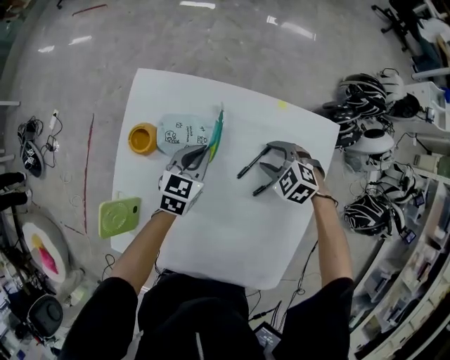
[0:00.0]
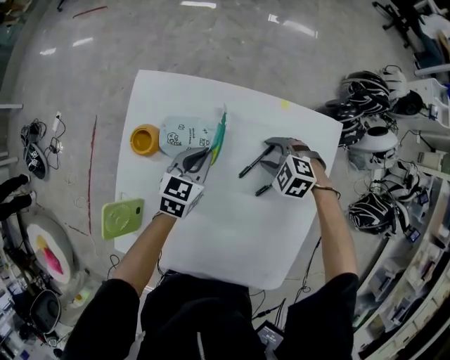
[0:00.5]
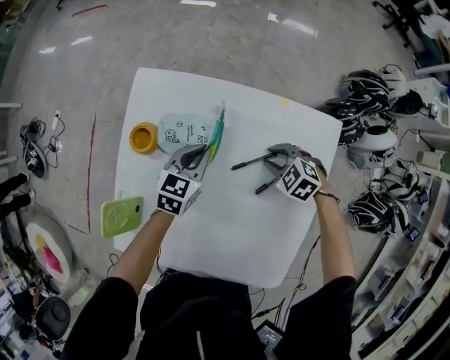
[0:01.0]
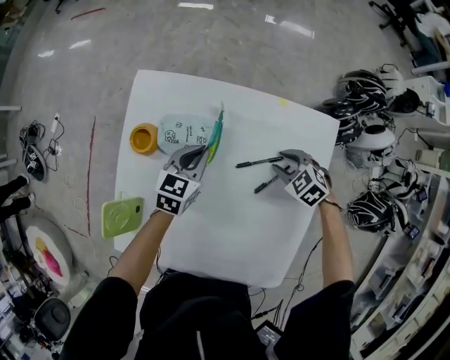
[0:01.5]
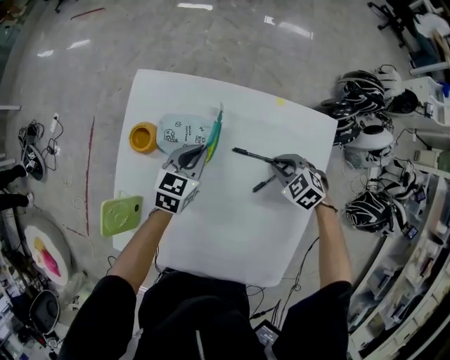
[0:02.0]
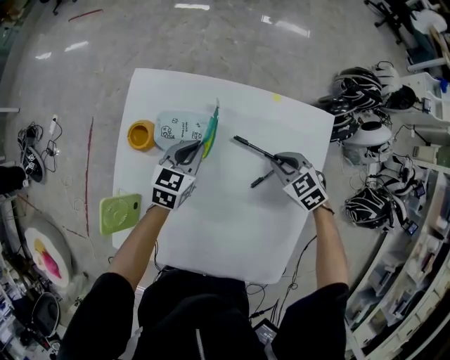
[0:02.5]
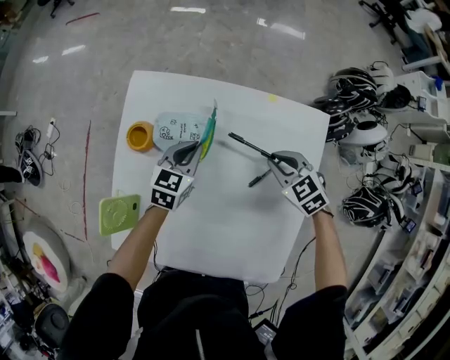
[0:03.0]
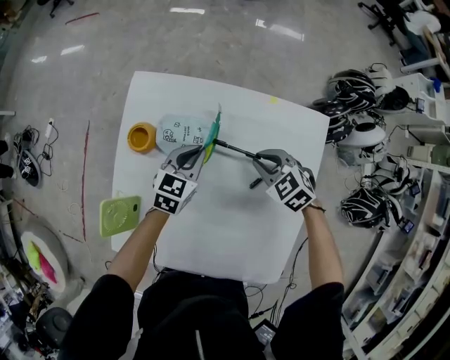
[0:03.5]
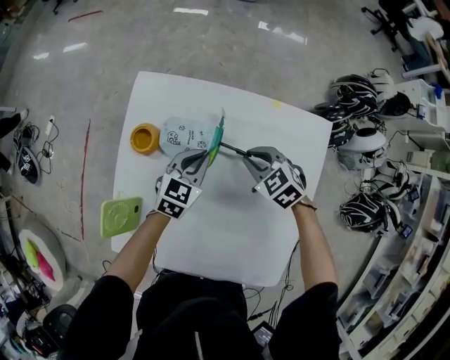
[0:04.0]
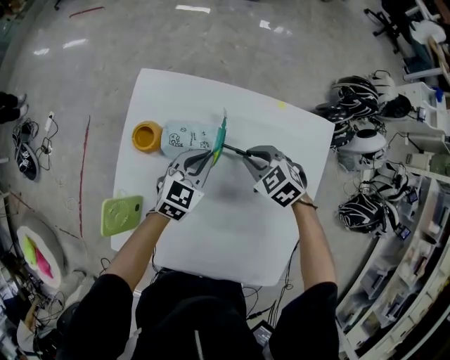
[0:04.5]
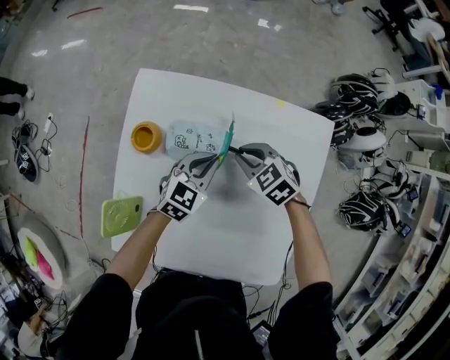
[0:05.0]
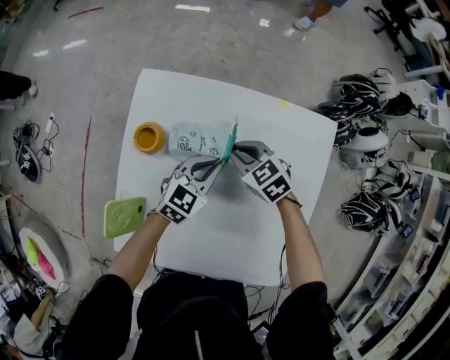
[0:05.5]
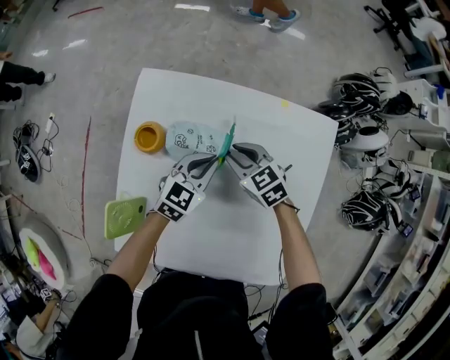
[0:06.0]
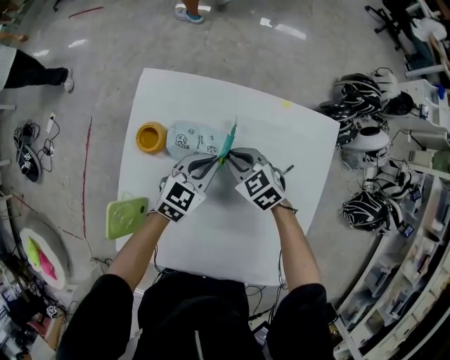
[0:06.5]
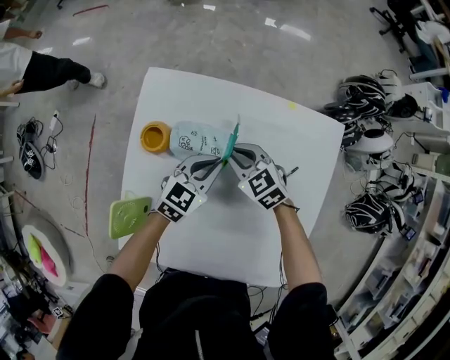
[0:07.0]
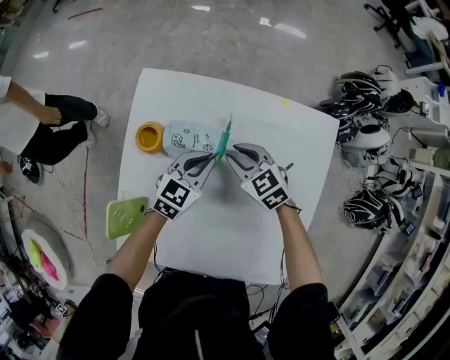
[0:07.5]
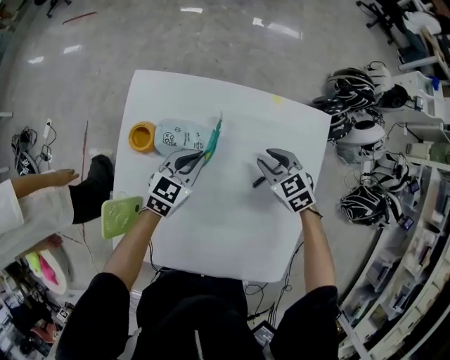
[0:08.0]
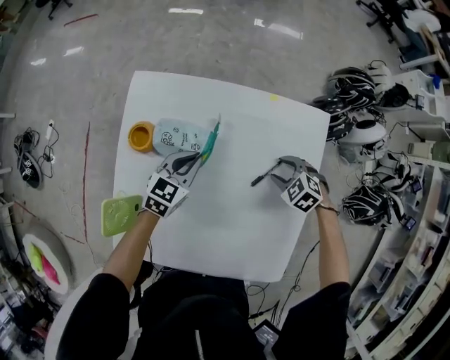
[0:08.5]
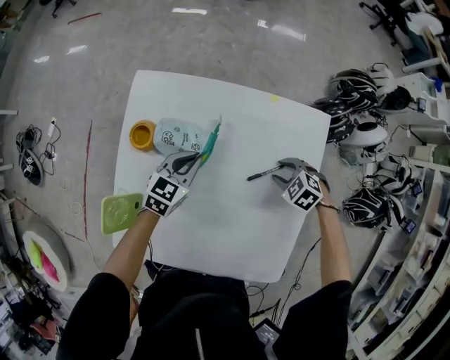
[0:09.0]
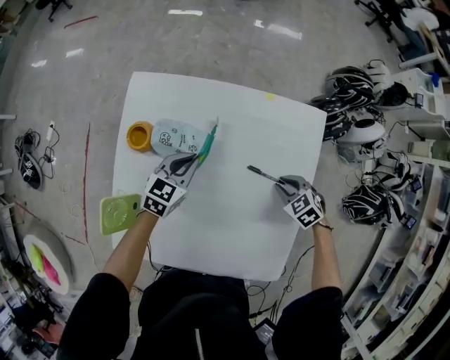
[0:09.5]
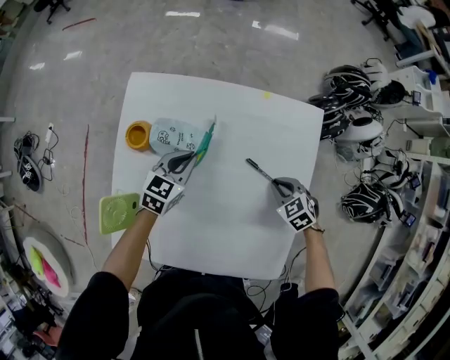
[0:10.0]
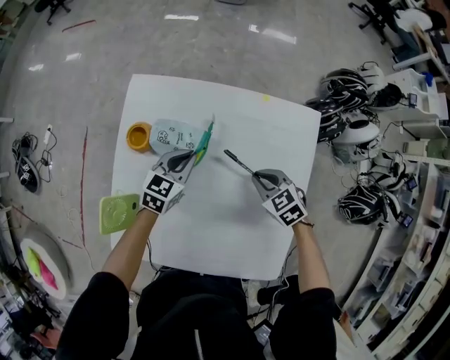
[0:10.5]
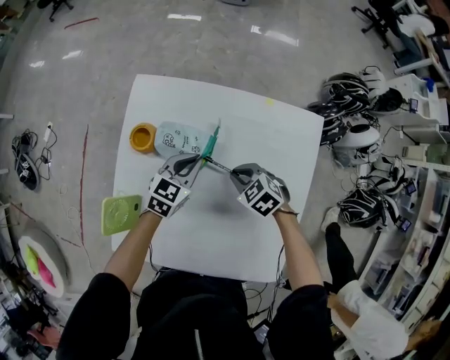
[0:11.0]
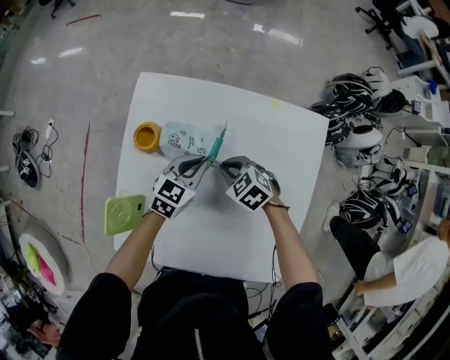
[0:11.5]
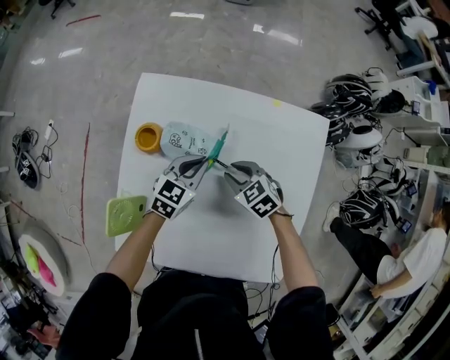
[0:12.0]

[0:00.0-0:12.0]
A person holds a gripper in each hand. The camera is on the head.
0:00.0 to 0:02.0: The right gripper ends up about 5 cm from where it was, and closes its fingers.
0:02.0 to 0:04.0: The right gripper is displaced to the left and upward by roughly 10 cm.
0:04.0 to 0:06.0: The right gripper heads to the left, covering about 5 cm.
0:06.0 to 0:08.0: The right gripper shifts some 10 cm to the right.
0:08.0 to 0:10.0: The right gripper moves backward and to the right, about 15 cm, and closes.
0:10.0 to 0:12.0: The right gripper goes some 20 cm to the left and forward.

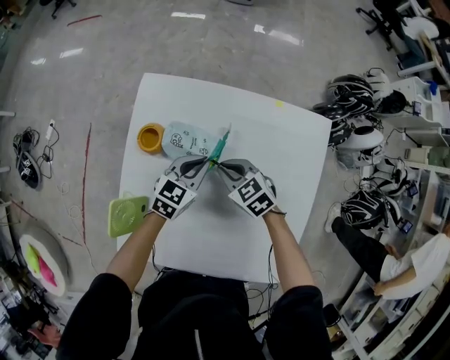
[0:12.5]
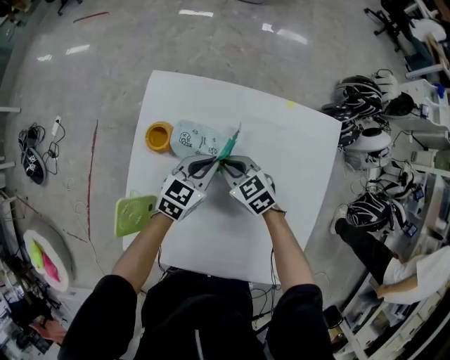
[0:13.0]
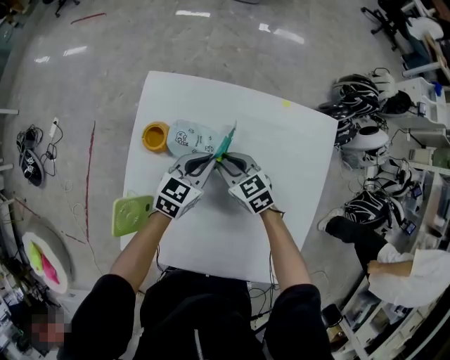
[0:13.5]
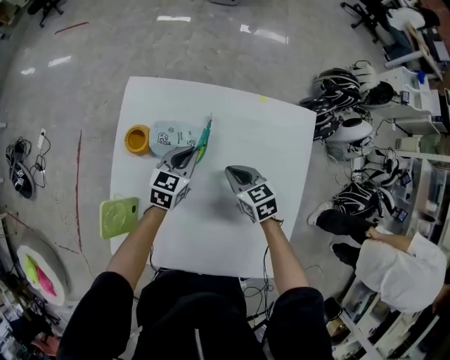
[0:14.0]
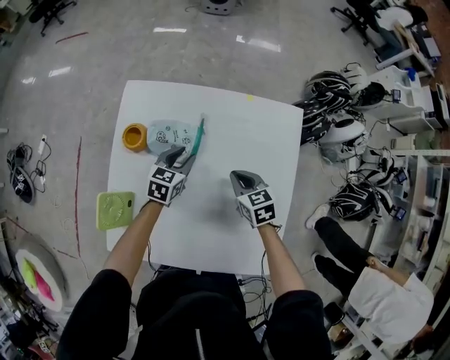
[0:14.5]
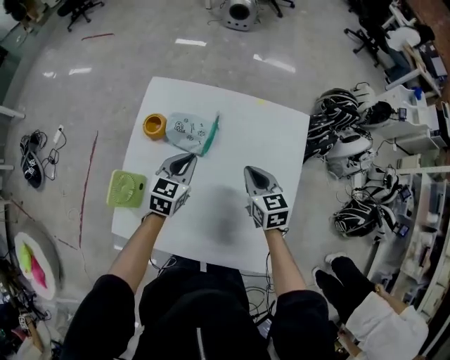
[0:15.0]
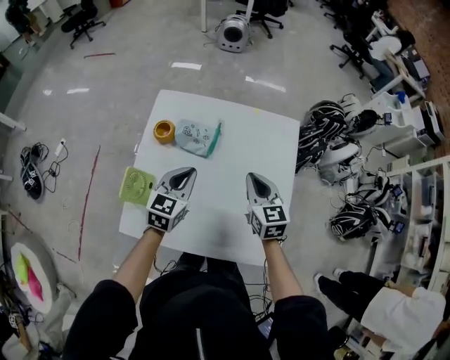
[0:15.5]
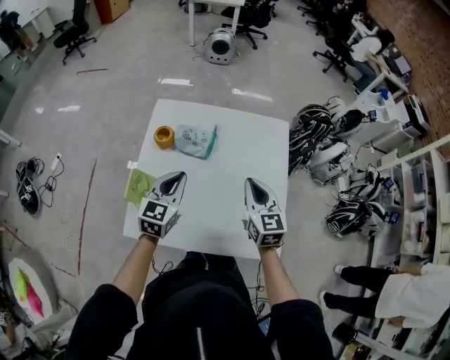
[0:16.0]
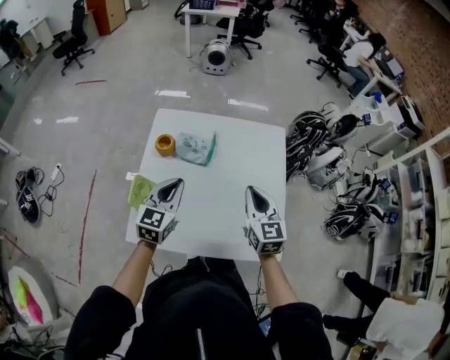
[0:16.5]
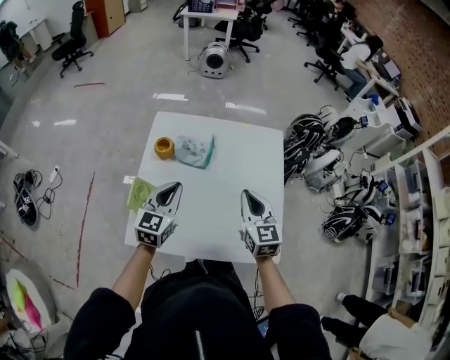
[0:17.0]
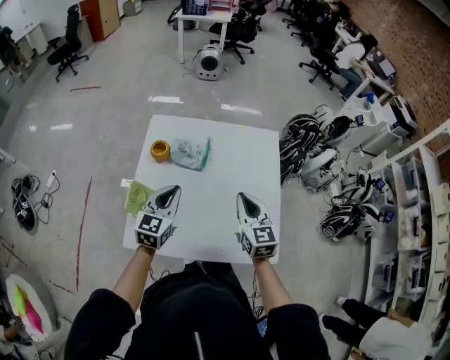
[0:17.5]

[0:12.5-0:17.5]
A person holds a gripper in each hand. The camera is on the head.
0:12.5 to 0:15.0: The left gripper shifts about 10 cm upward and backward, and opens, then closes once more, while the right gripper travels to the right, upward and backward by approximately 15 cm, and rotates approximately 30 degrees.
0:15.0 to 0:17.5: The two grippers go approximately 20 cm backward and upward. The right gripper changes its angle by roughly 20 degrees.

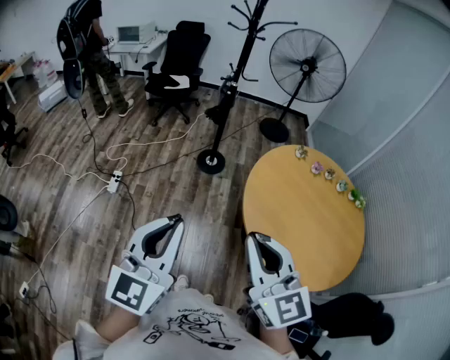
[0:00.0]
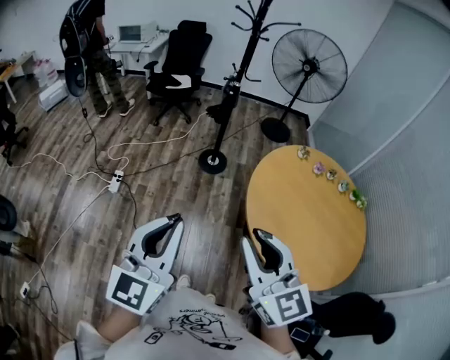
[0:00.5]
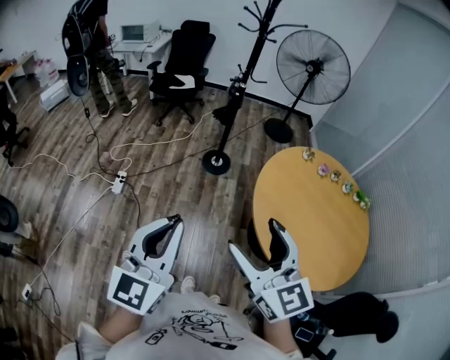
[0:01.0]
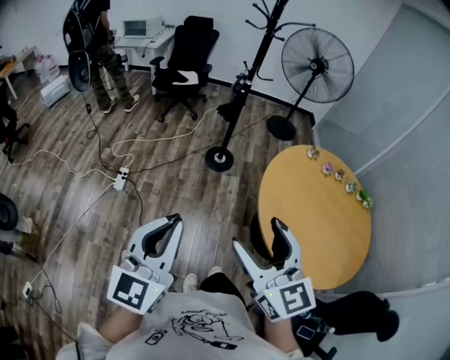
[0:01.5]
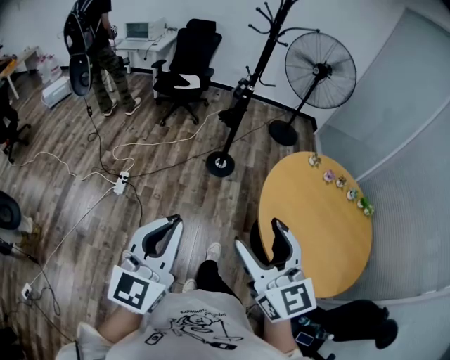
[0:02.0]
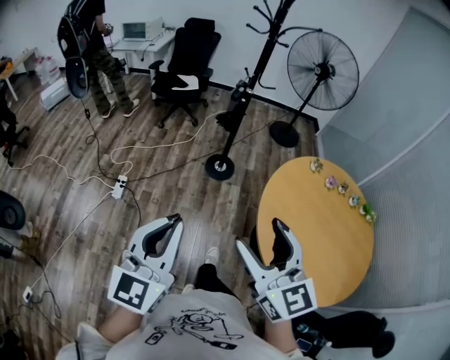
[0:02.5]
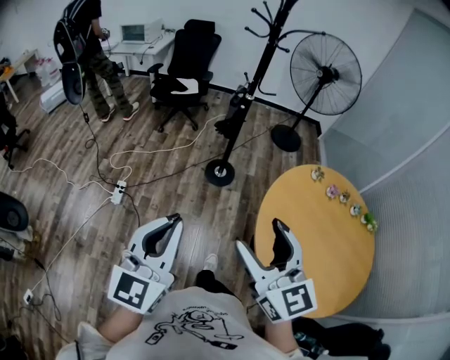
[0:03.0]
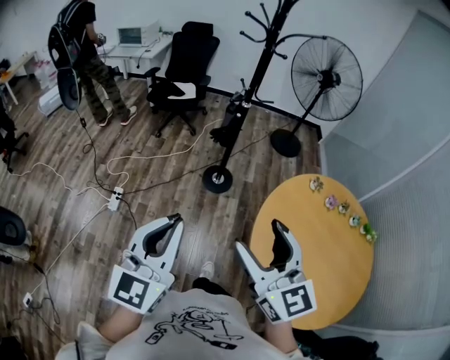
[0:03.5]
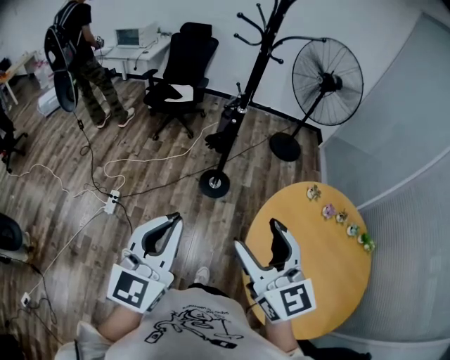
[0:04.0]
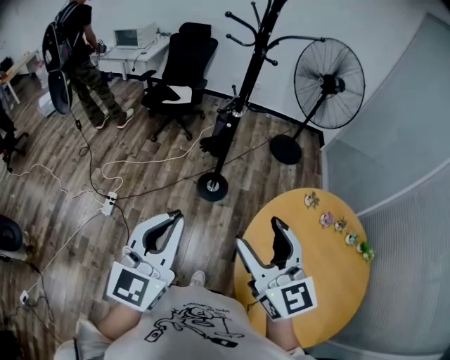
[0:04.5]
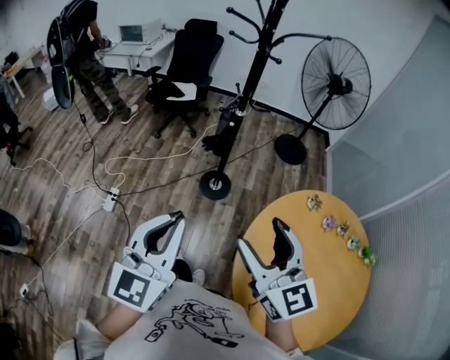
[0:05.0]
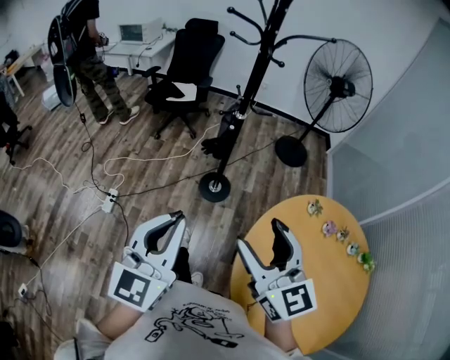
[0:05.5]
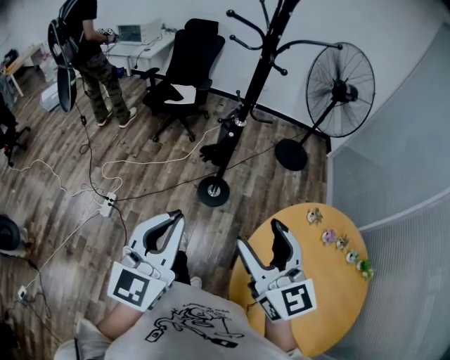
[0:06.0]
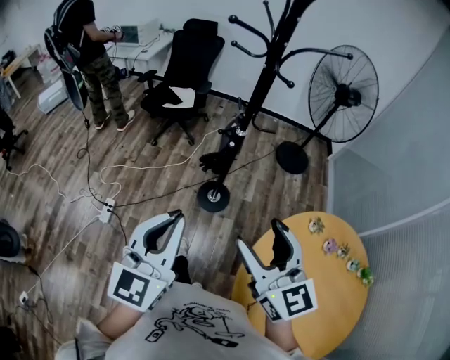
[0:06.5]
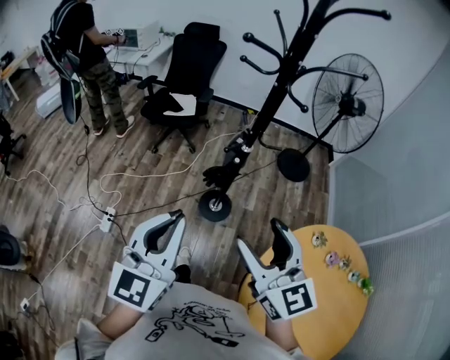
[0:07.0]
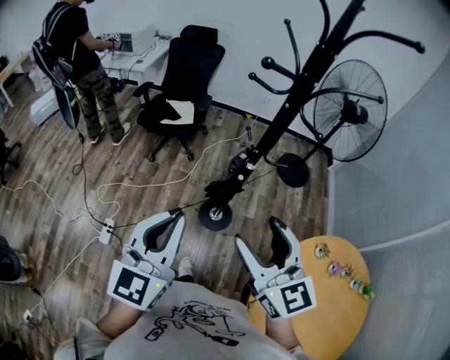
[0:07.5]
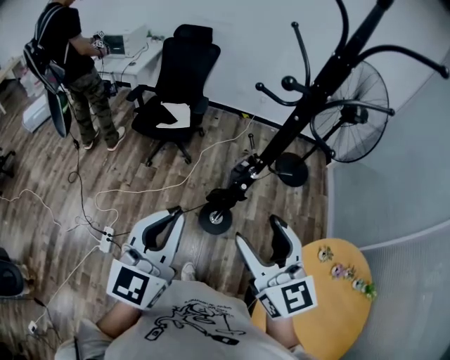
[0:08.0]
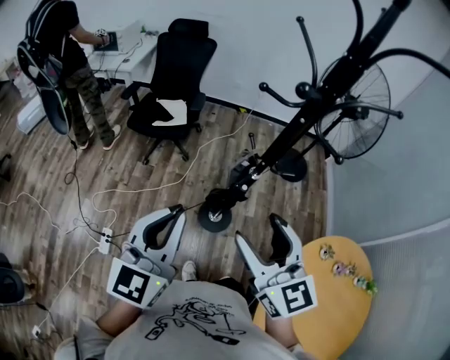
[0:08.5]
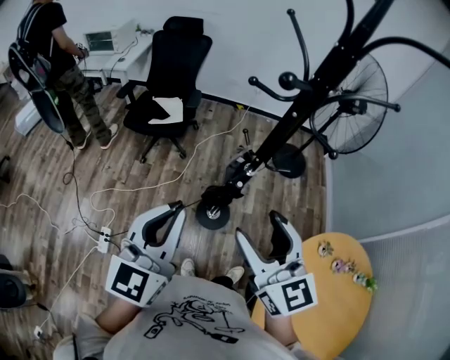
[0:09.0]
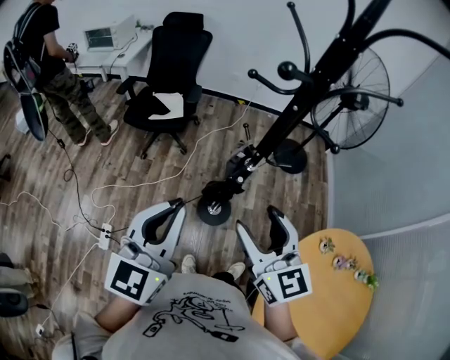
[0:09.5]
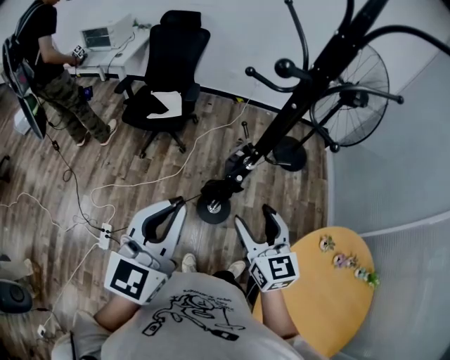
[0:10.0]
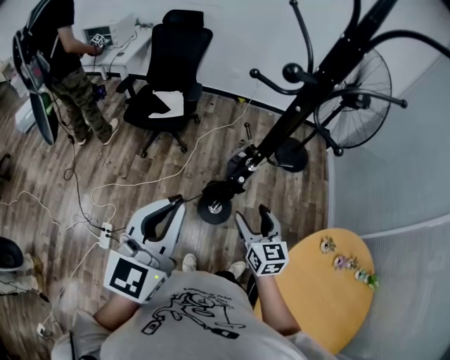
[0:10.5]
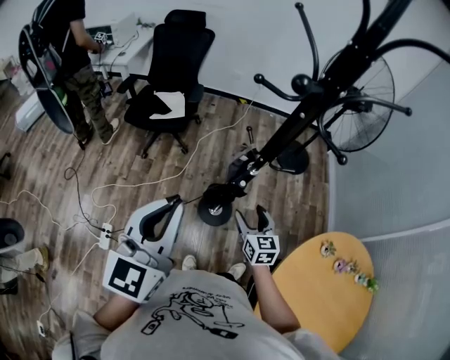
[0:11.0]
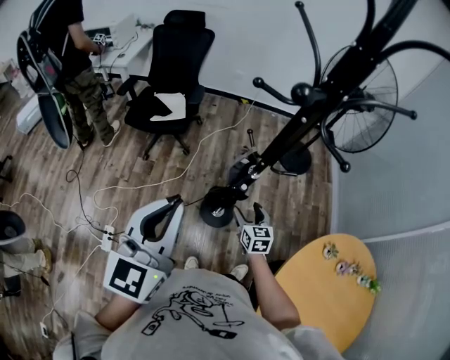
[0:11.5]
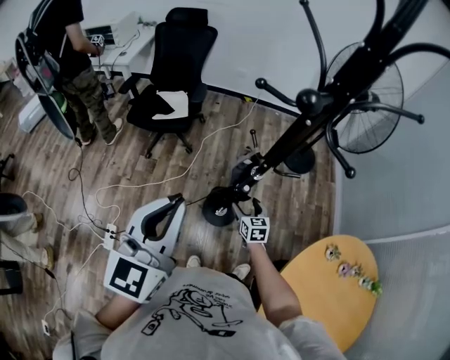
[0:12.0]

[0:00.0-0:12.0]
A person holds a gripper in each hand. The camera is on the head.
0:00.0 to 0:02.0: The right gripper travels to the left and forward by some 10 cm, and opens up; the left gripper is displaced to the left by roughly 10 cm.
0:02.0 to 0:04.0: Both grippers move forward, some 25 cm.
0:04.0 to 0:06.0: Both grippers move forward and to the right, roughly 15 cm.
0:06.0 to 0:08.0: The left gripper shifts some 25 cm forward. Meanwhile the right gripper heads forward and to the left, covering approximately 30 cm.
0:08.0 to 0:10.0: The right gripper is displaced downward and forward by roughly 15 cm.
0:10.0 to 0:12.0: The left gripper travels forward by approximately 5 cm; the right gripper moves downward and forward, about 35 cm, and changes its angle by about 20 degrees.
